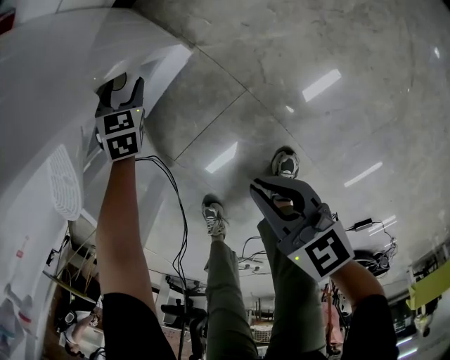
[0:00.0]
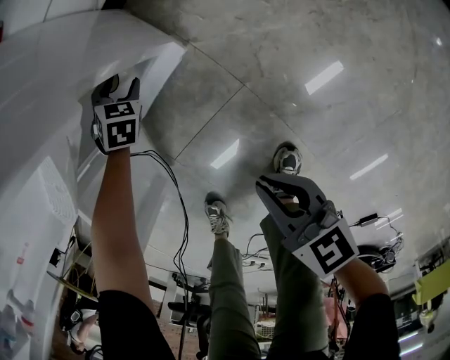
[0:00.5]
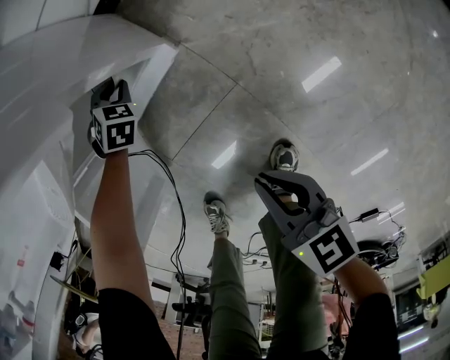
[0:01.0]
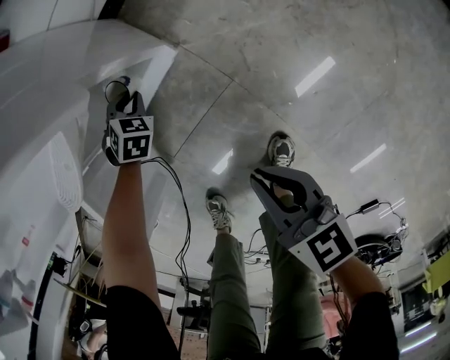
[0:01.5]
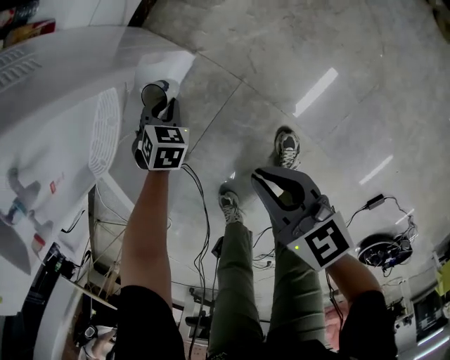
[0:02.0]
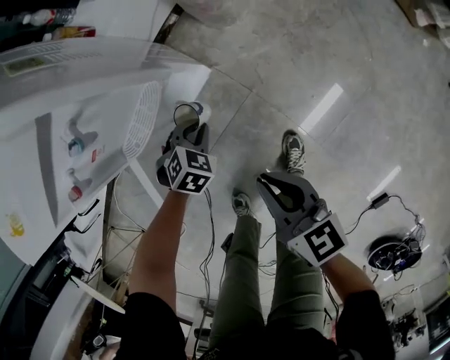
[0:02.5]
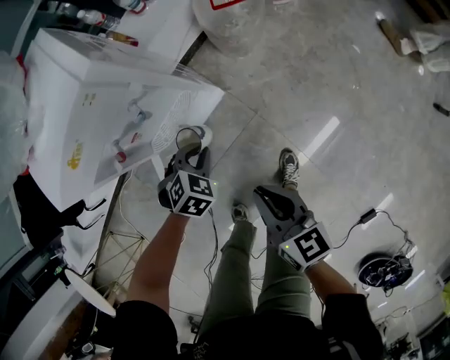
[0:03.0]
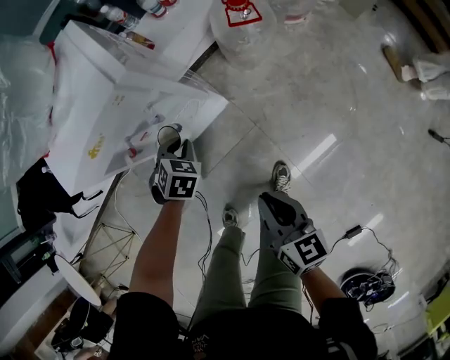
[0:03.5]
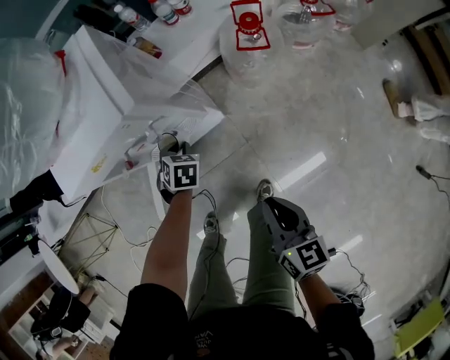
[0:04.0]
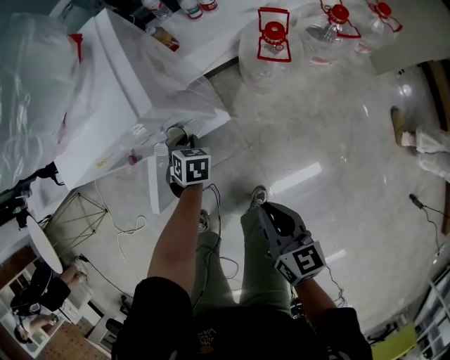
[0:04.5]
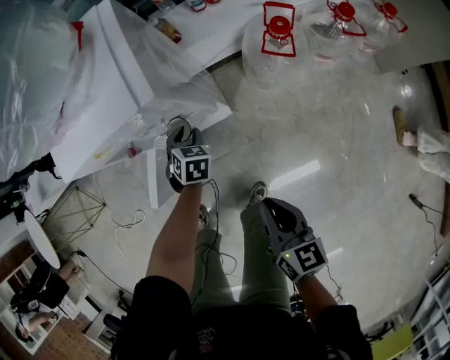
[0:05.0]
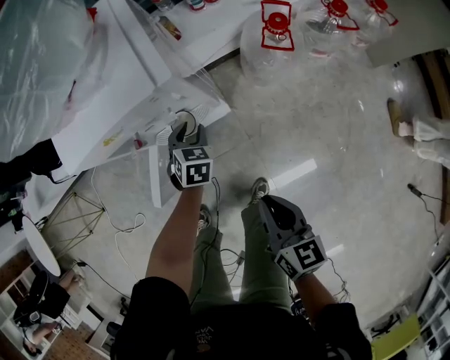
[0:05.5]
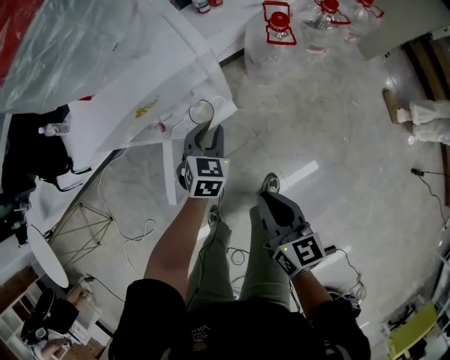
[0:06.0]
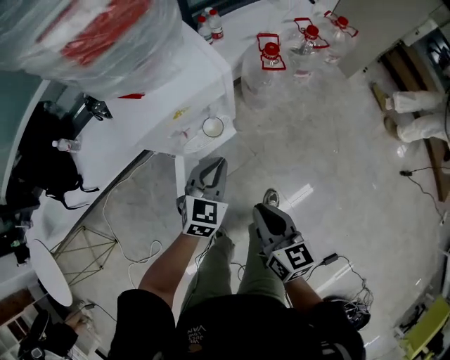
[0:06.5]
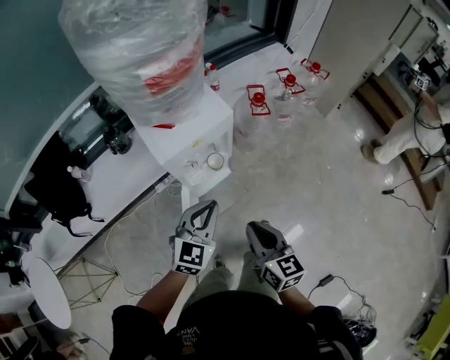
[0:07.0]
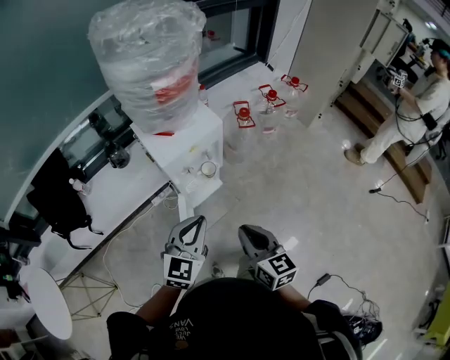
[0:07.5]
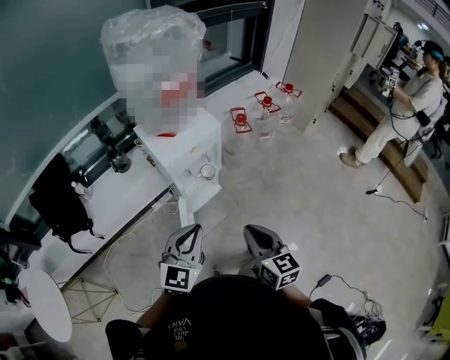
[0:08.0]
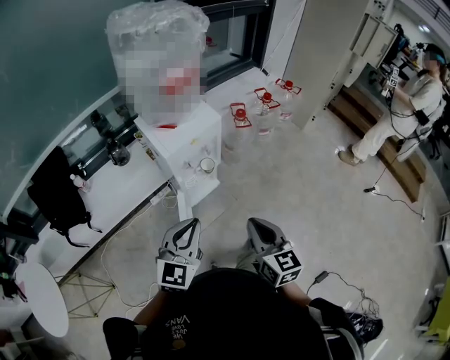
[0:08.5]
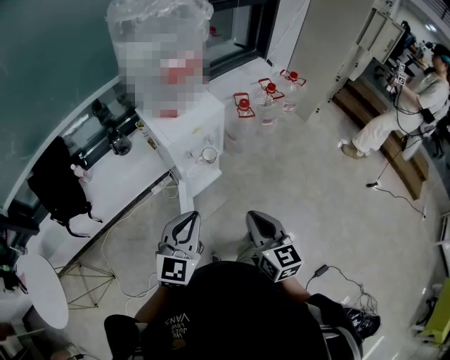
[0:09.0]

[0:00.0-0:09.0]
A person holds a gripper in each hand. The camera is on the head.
0:00.0 to 0:02.0: The right gripper moves upward, about 15 cm. The left gripper travels backward and upward by roughly 15 cm, and closes.
0:02.0 to 0:04.5: The two grippers go some 30 cm upward. The left gripper rolls counterclockwise, seen from behind, by roughly 40 degrees.
0:04.5 to 0:07.0: The right gripper ends up about 35 cm from where it was, and swivels some 20 degrees, while the left gripper moves upward, approximately 40 cm, and angles its fingers upward, by roughly 40 degrees.
0:07.0 to 0:09.0: The grippers both shift backward and upward by roughly 20 cm.

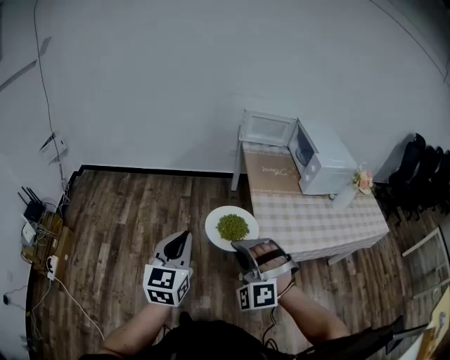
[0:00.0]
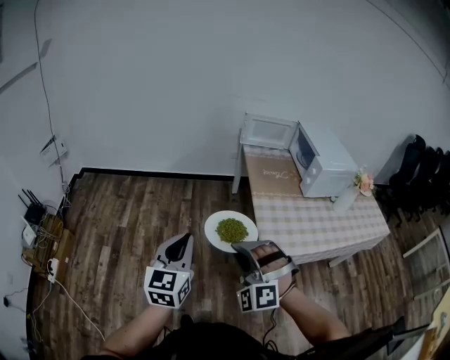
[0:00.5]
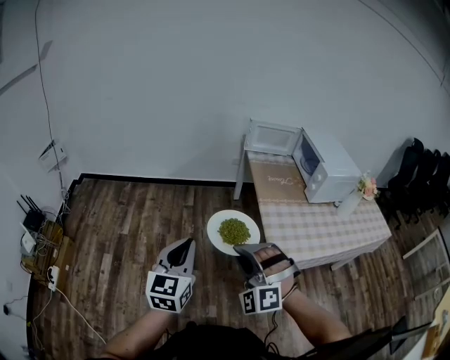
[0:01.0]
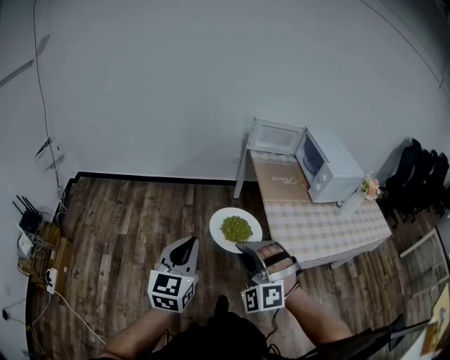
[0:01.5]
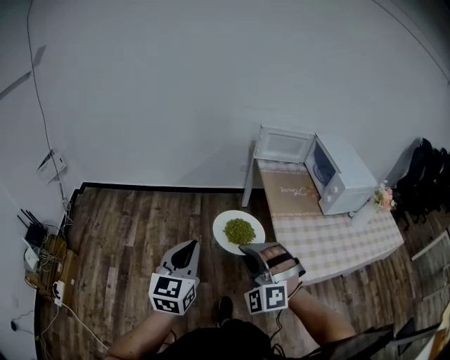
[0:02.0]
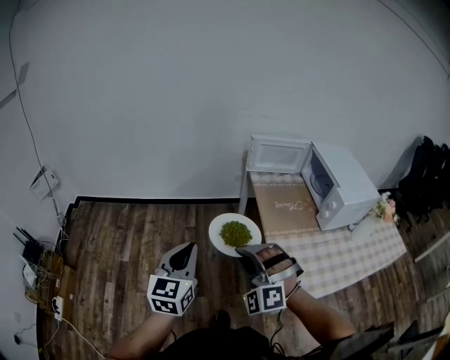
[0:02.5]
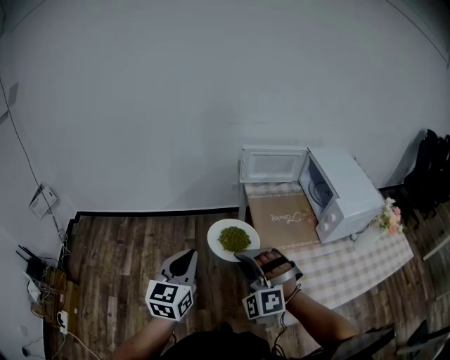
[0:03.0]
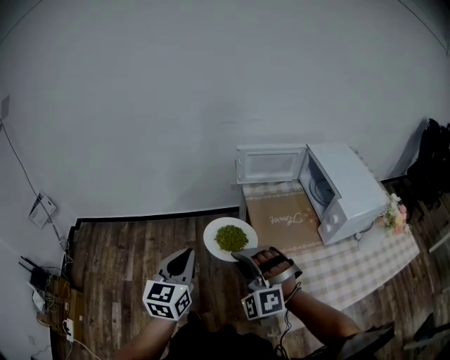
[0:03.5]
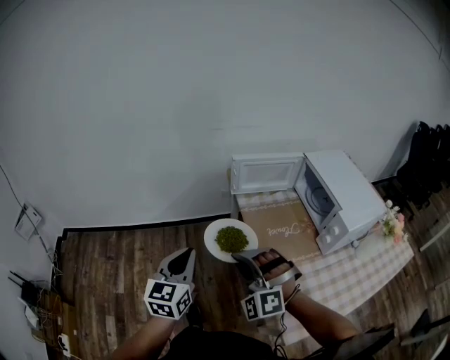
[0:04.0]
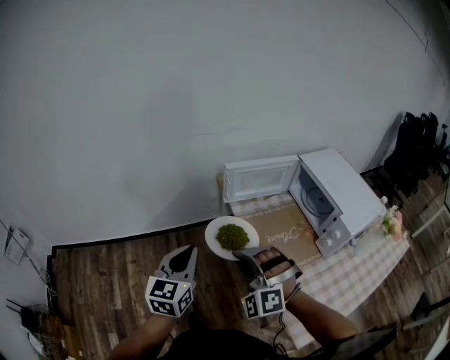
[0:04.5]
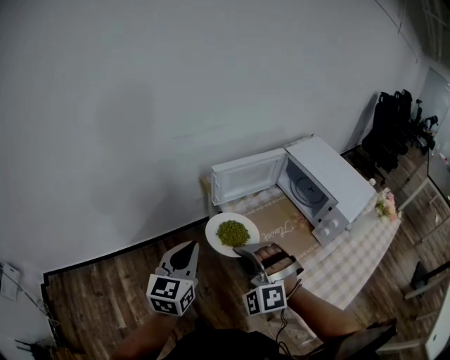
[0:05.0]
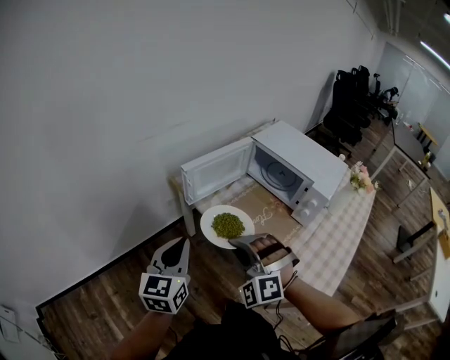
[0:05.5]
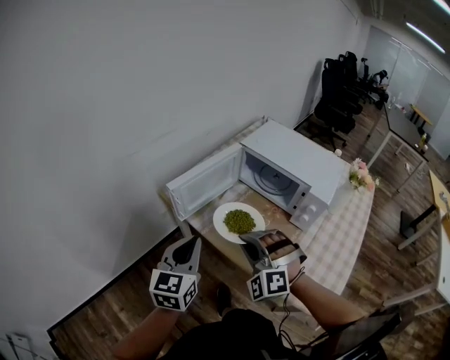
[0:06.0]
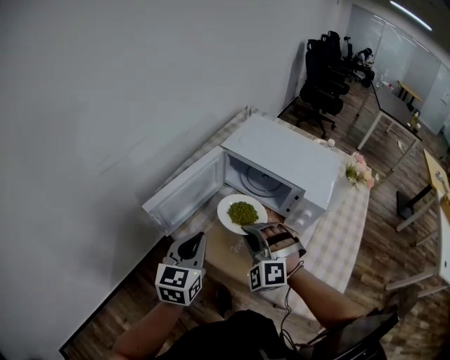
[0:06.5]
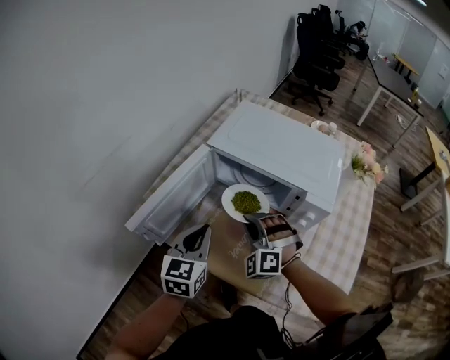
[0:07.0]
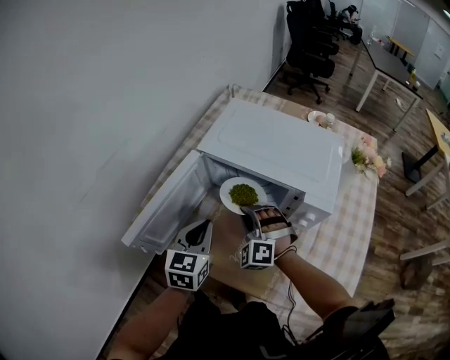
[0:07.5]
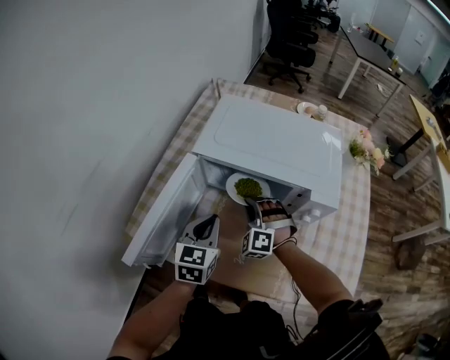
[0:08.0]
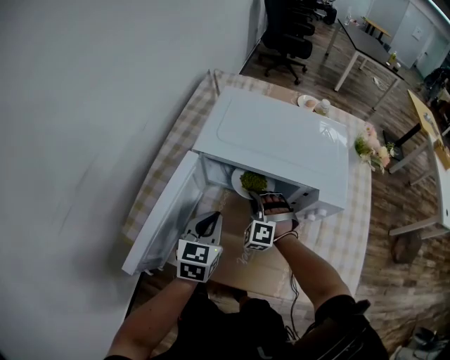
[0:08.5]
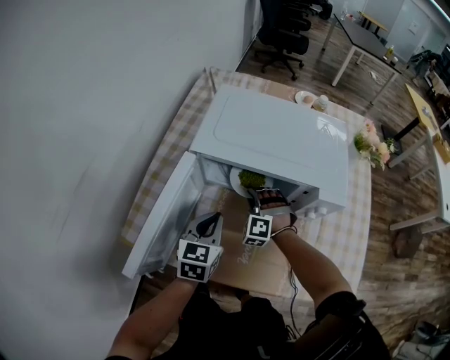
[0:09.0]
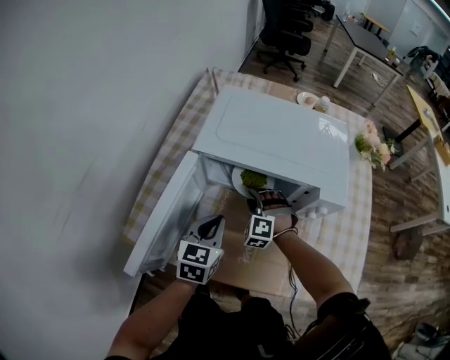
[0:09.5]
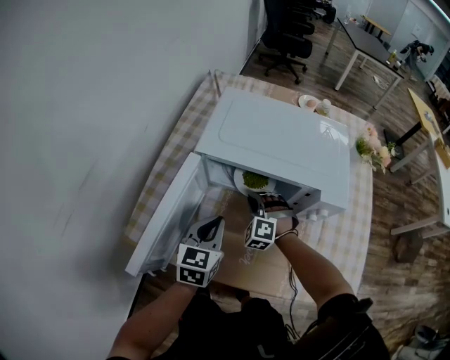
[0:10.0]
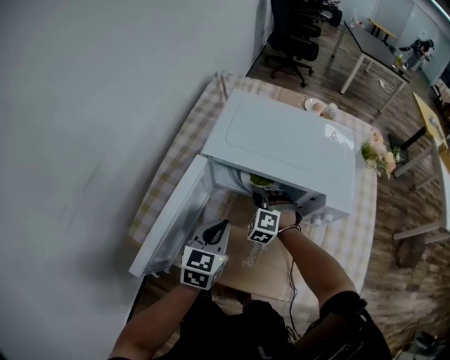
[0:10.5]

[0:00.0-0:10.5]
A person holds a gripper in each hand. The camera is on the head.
0:00.0 to 0:02.0: Both grippers move forward and to the left, roughly 15 cm.
0:02.0 to 0:04.0: The grippers both shift forward by approximately 30 cm.
0:04.0 to 0:06.5: The left gripper shifts by about 35 cm, and turns by about 50 degrees. The right gripper ends up roughly 30 cm from where it was, and rotates some 50 degrees.
0:06.5 to 0:08.5: The right gripper shifts by roughly 30 cm, and turns by approximately 30 degrees. The left gripper ends up roughly 20 cm from where it was, and rotates roughly 20 degrees.
0:08.5 to 0:10.5: The right gripper opens, then closes again.

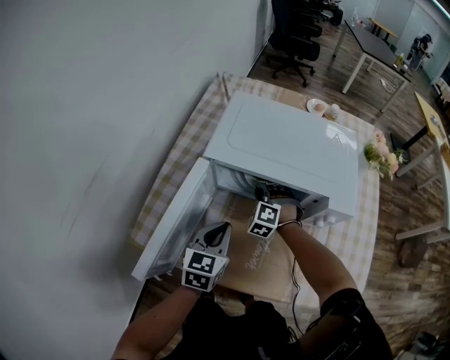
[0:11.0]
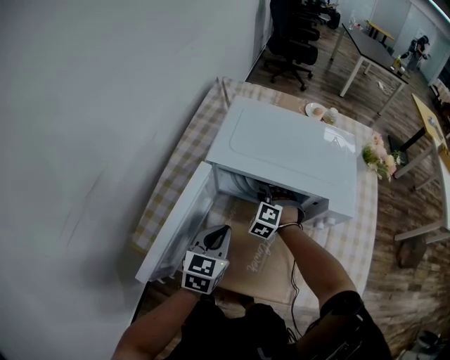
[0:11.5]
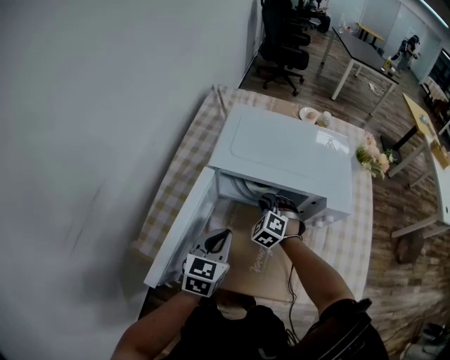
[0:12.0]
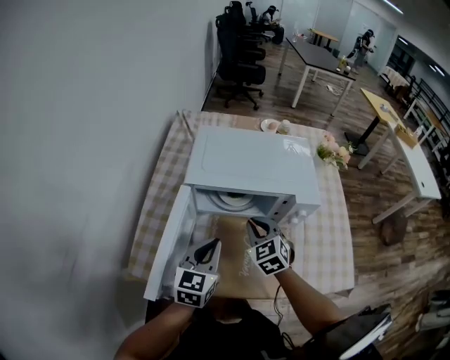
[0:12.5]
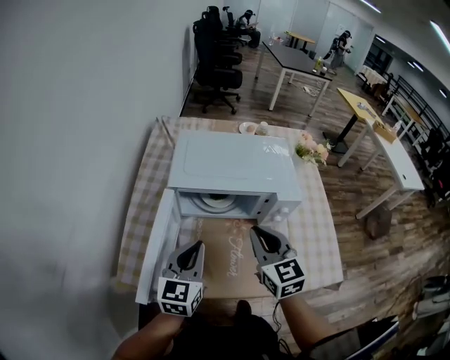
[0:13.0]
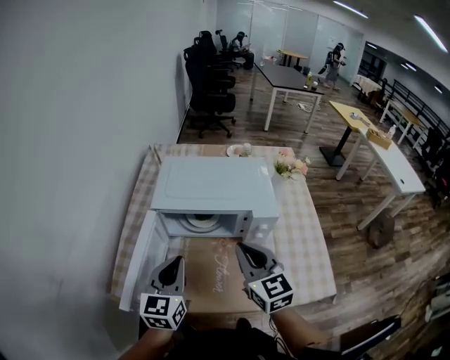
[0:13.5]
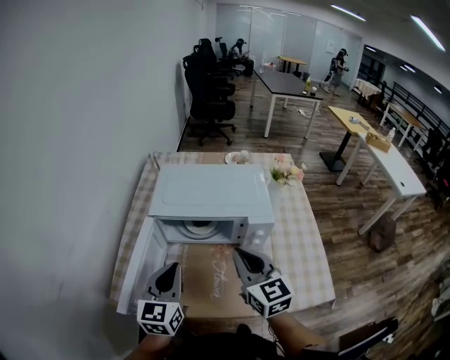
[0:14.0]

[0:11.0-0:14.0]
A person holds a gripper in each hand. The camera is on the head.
0:11.0 to 0:12.5: The left gripper moves upward, roughly 5 cm. The right gripper shifts about 15 cm upward and backward, and rolls clockwise, seen from behind, by about 50 degrees.
0:12.5 to 0:14.0: The right gripper moves upward, backward and to the right, roughly 20 cm, and rotates approximately 40 degrees. Meanwhile the left gripper shifts about 10 cm upward.

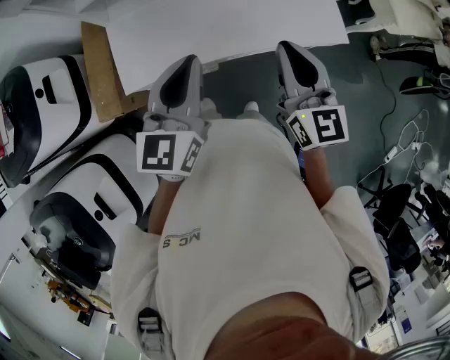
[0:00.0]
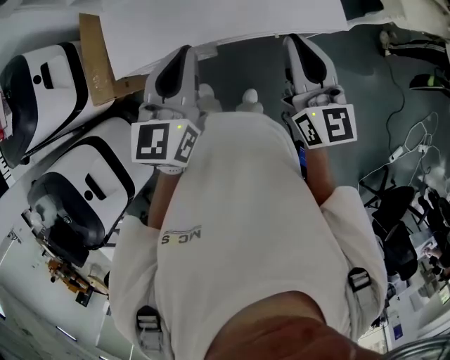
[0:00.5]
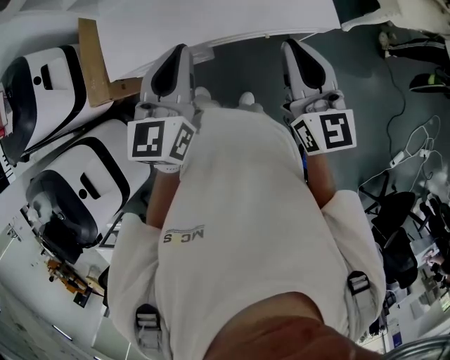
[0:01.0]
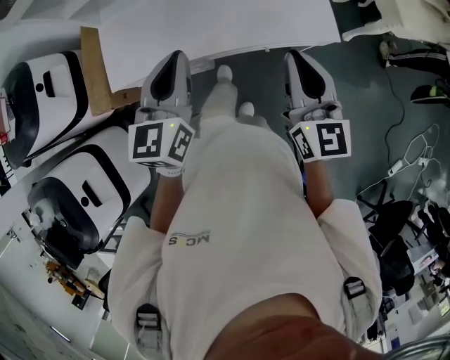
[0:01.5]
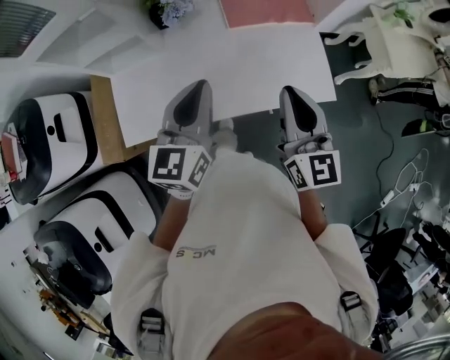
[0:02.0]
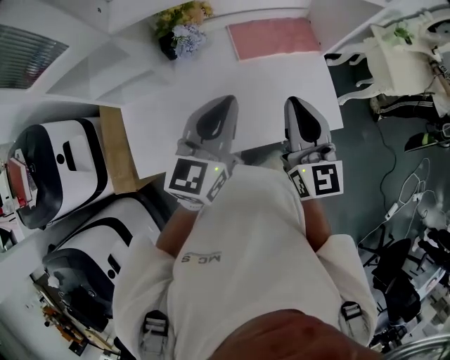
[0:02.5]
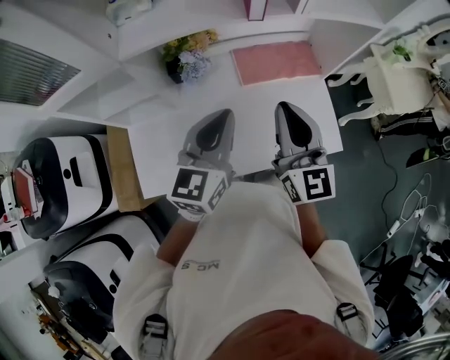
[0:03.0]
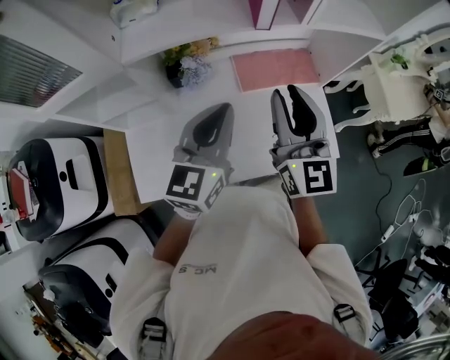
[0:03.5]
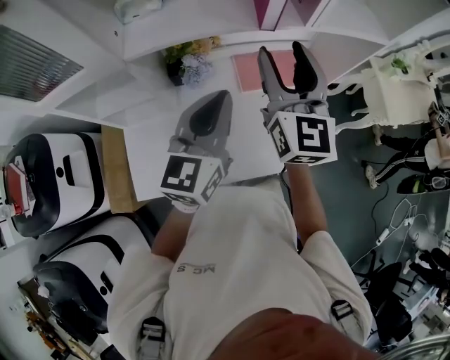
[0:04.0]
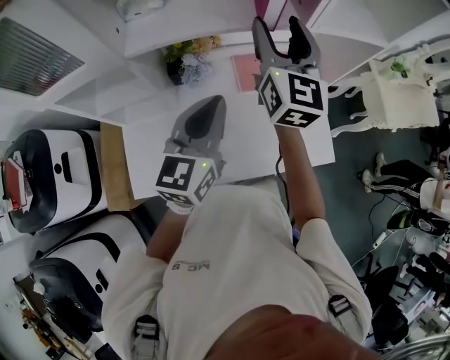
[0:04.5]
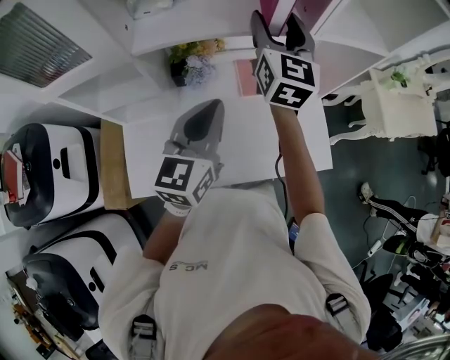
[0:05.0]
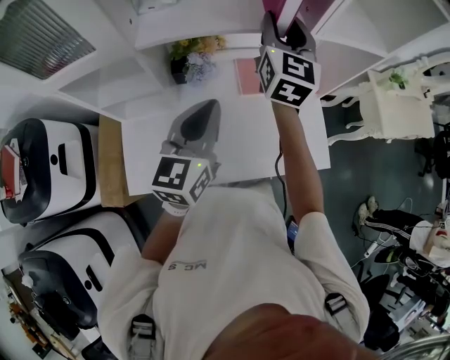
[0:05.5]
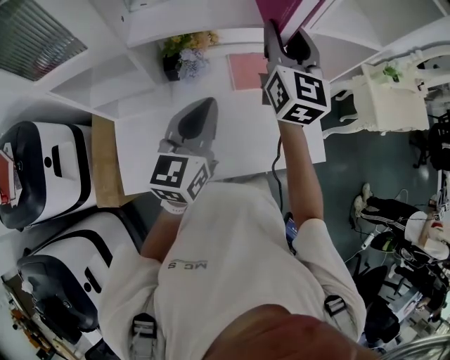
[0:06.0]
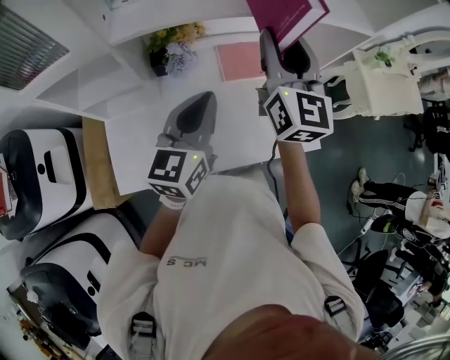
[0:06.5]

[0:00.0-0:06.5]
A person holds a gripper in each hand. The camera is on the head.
0:00.0 to 0:02.0: Both grippers travel together forward and to the right, approximately 15 cm.
0:02.0 to 0:04.5: The right gripper heads forward and upward, covering approximately 35 cm, and opens up. Meanwhile the left gripper shifts about 15 cm forward.
0:04.5 to 0:06.5: The right gripper shifts some 5 cm backward, and closes its fingers.
